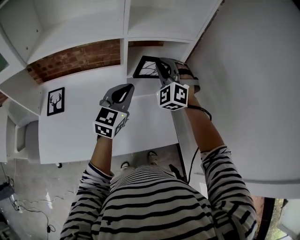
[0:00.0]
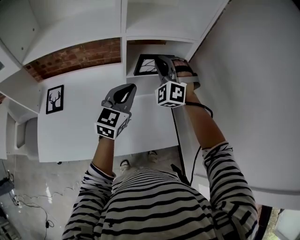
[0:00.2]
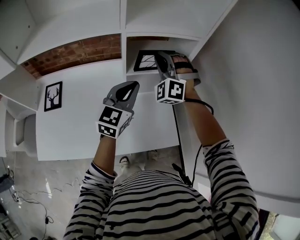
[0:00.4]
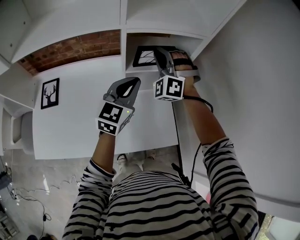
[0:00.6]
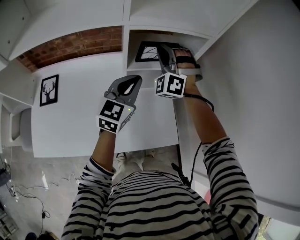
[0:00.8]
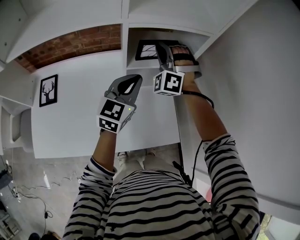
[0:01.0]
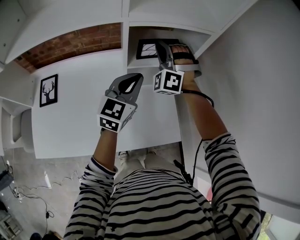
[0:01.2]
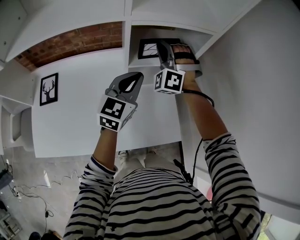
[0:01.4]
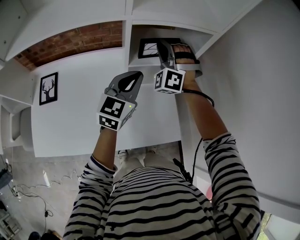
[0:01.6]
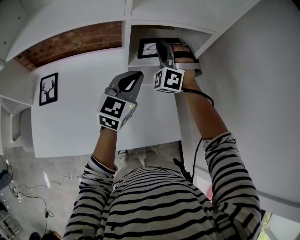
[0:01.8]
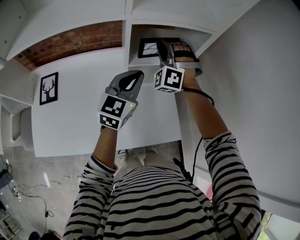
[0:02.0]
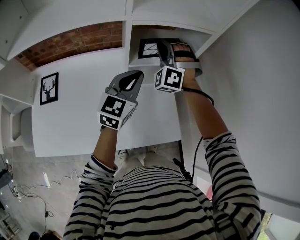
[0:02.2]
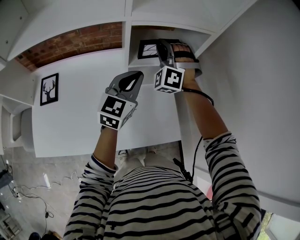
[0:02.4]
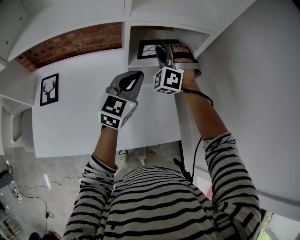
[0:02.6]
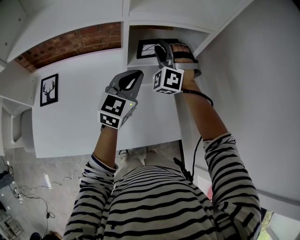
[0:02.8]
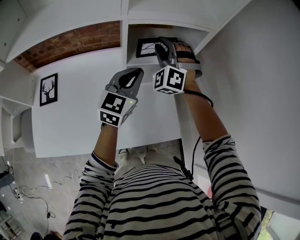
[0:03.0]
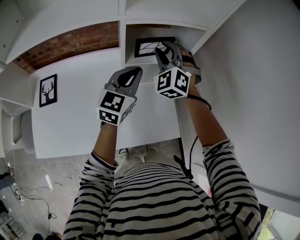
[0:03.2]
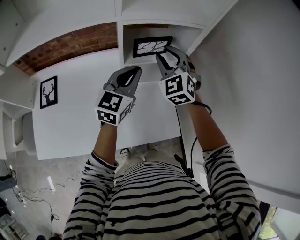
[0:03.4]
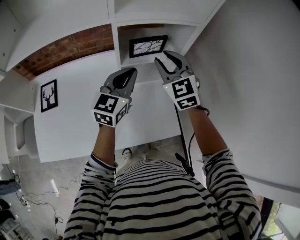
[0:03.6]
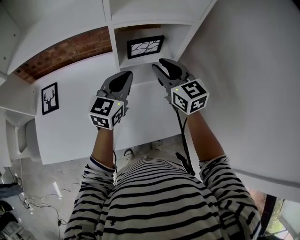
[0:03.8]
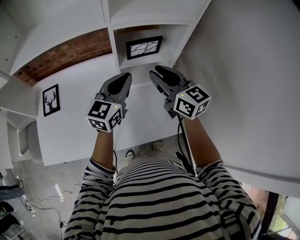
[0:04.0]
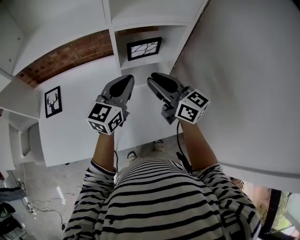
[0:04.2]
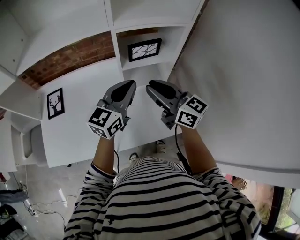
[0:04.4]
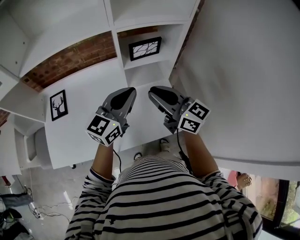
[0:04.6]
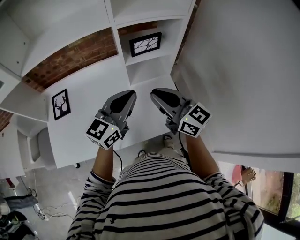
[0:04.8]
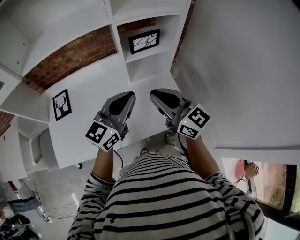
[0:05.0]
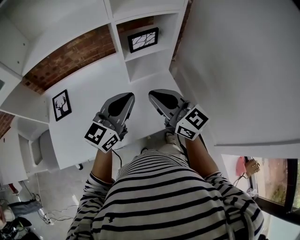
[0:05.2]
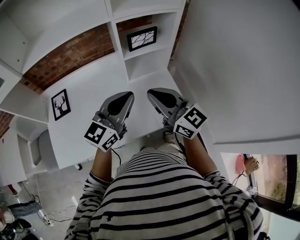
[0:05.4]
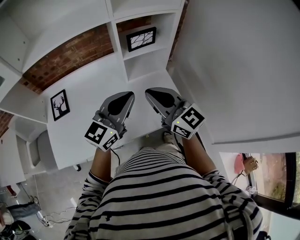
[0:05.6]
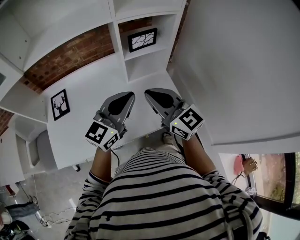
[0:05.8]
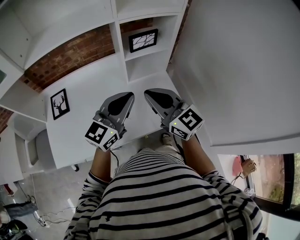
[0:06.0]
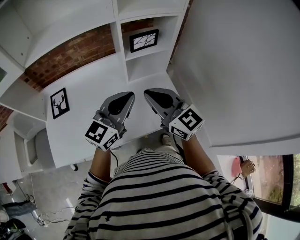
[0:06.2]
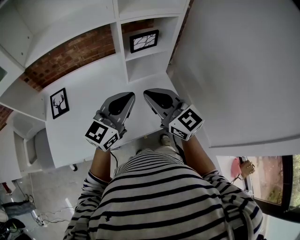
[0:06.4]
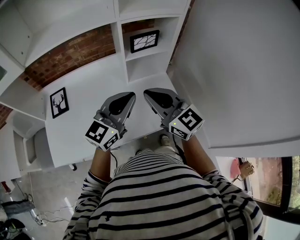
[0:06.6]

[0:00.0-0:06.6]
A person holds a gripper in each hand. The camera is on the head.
0.0 to 1.6 s: The two grippers go roughly 10 cm forward and downward.
1.6 to 3.2 s: The right gripper swivels about 20 degrees.
3.2 to 5.0 s: The right gripper travels backward by about 25 cm, rolls clockwise, seen from behind, by some 70 degrees, and closes its fingers; the left gripper is displaced backward by roughly 15 cm, and changes its angle by roughly 20 degrees.
5.0 to 6.6 s: The grippers make only small movements.

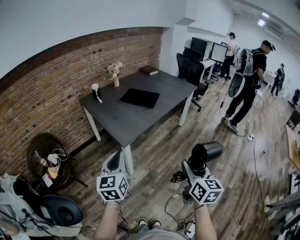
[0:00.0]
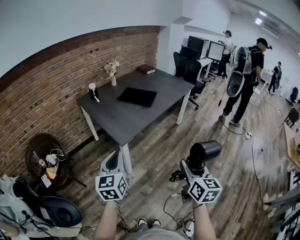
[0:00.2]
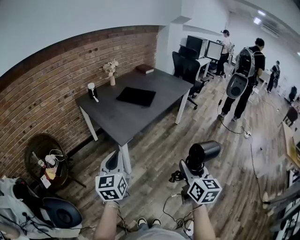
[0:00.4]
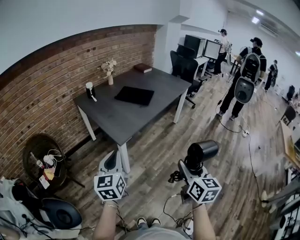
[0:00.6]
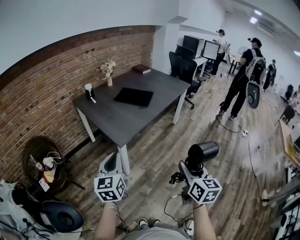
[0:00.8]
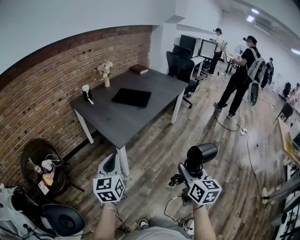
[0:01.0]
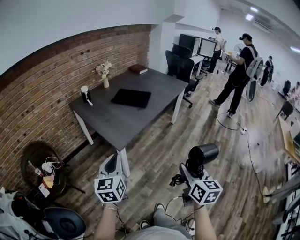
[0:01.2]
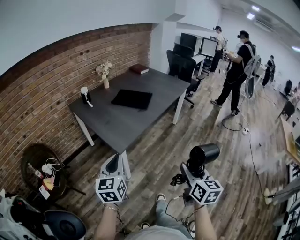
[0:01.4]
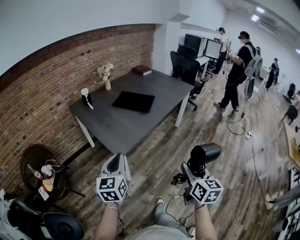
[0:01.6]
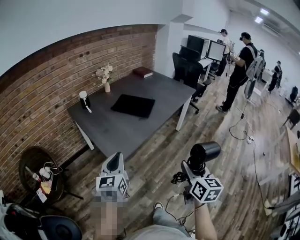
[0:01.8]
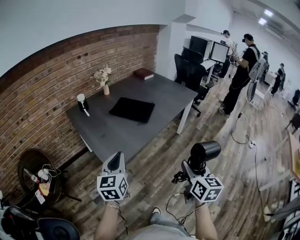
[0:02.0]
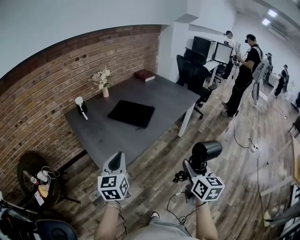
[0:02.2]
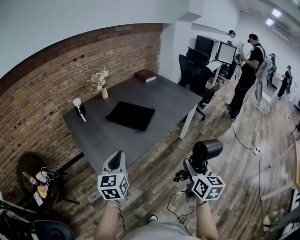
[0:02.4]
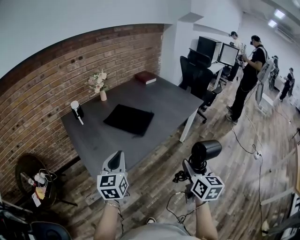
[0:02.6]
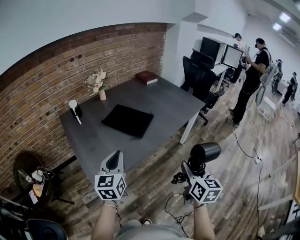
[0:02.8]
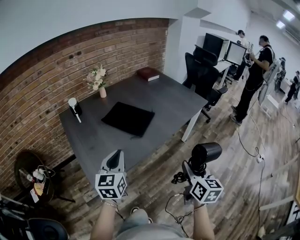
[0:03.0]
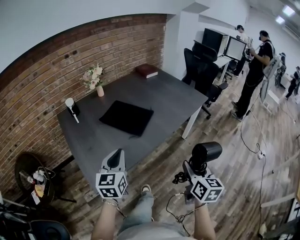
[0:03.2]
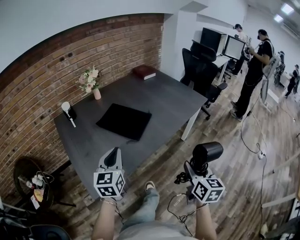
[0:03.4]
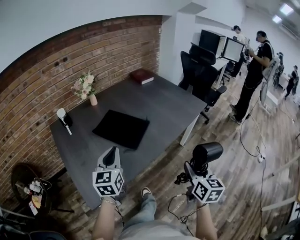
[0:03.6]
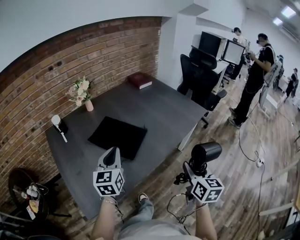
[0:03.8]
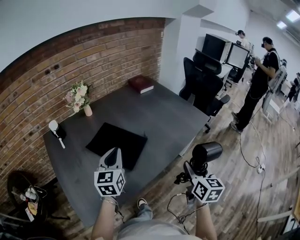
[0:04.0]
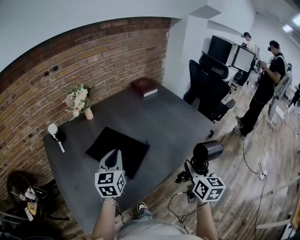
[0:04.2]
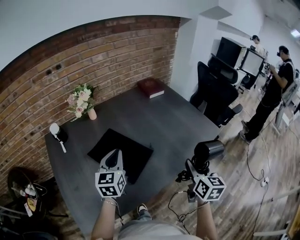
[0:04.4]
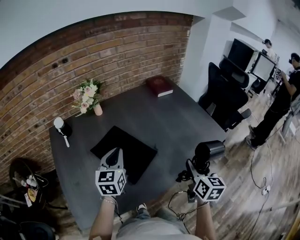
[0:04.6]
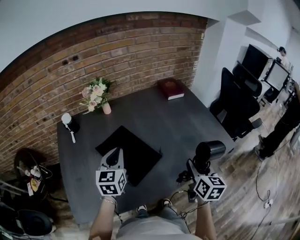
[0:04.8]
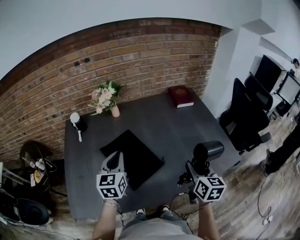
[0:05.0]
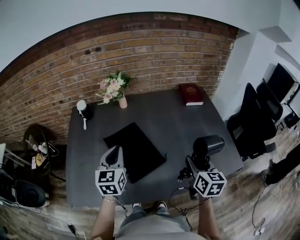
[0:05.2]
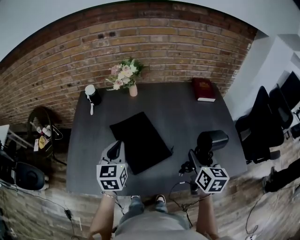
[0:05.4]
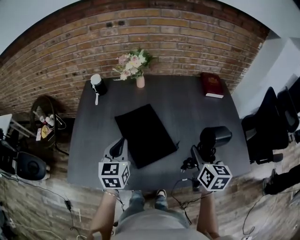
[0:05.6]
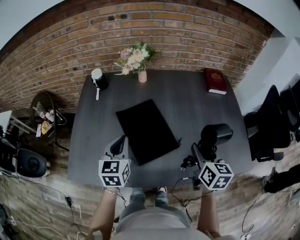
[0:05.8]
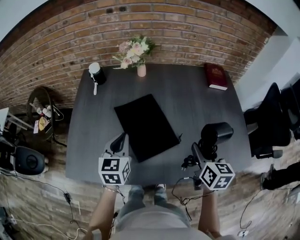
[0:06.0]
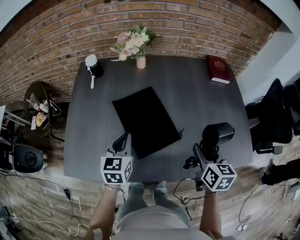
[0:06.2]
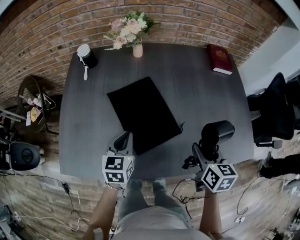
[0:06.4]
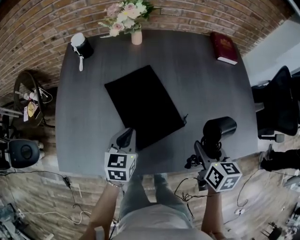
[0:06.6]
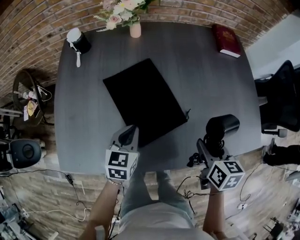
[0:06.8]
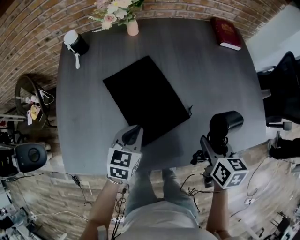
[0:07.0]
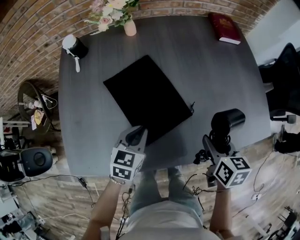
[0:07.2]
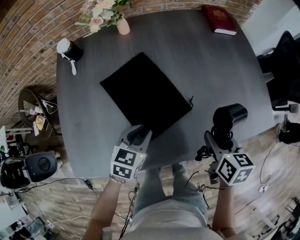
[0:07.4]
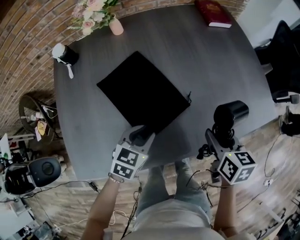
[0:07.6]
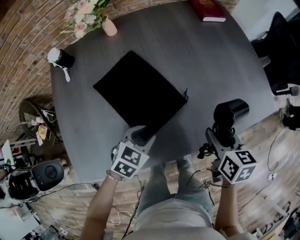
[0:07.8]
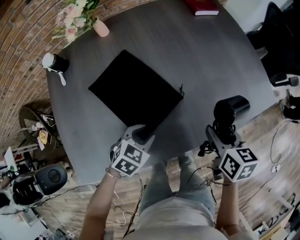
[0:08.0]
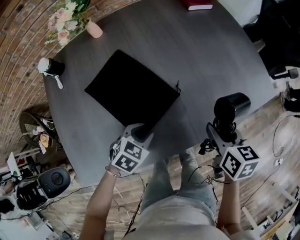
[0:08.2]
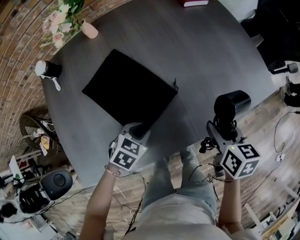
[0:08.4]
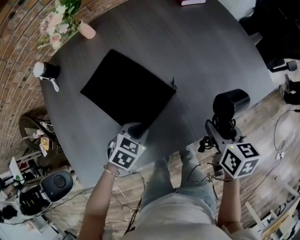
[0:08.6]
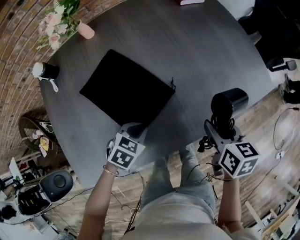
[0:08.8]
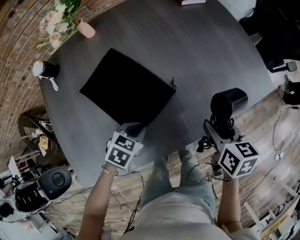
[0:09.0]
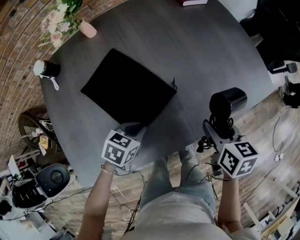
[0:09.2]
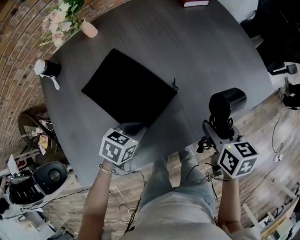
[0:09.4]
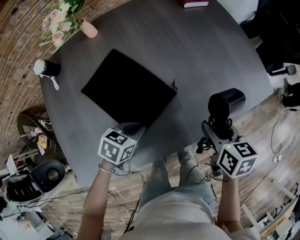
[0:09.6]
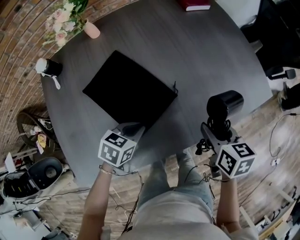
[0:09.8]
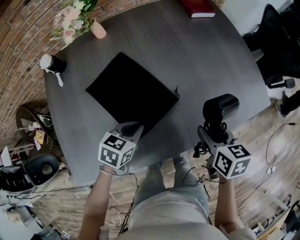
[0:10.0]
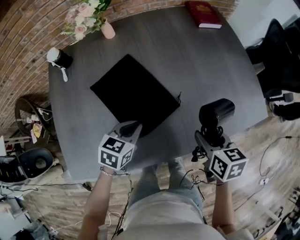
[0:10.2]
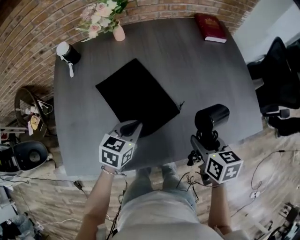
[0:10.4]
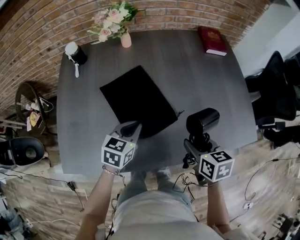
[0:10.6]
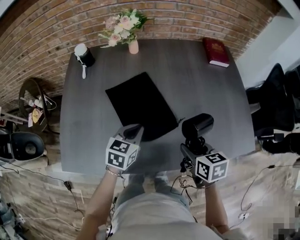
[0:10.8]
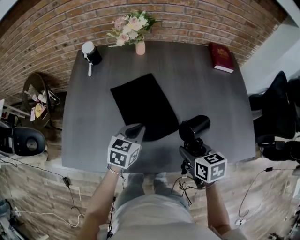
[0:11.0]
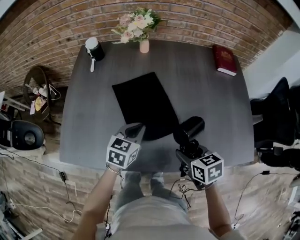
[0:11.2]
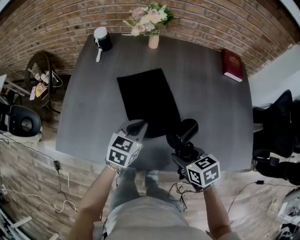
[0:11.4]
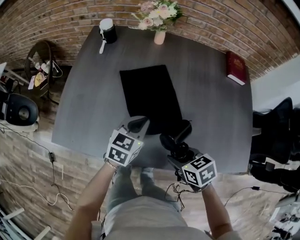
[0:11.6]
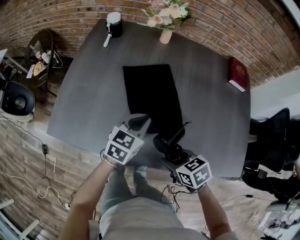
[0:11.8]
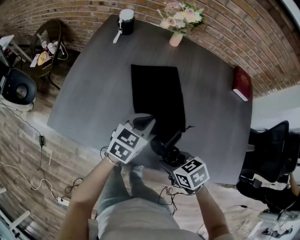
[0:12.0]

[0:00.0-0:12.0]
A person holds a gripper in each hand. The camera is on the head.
0.0 to 1.6 s: The grippers both shift forward by roughly 10 cm.
1.6 to 3.0 s: Both grippers travel together forward and to the right, roughly 35 cm.
3.0 to 4.4 s: The two grippers go some 35 cm forward.
4.4 to 6.0 s: The left gripper ends up about 10 cm from where it was, and changes its angle by some 30 degrees. Meanwhile the right gripper ends up roughly 20 cm from where it was, and rotates about 40 degrees.
6.0 to 7.6 s: The right gripper heads downward and backward, covering approximately 10 cm; the left gripper goes approximately 20 cm downward and to the right, rotates approximately 50 degrees, and opens up.
7.6 to 9.0 s: The left gripper moves approximately 5 cm, rotates approximately 20 degrees, and closes its fingers.
9.0 to 10.4 s: The left gripper travels upward by approximately 10 cm, and changes its angle by approximately 30 degrees; the right gripper goes roughly 5 cm to the left.
10.4 to 12.0 s: The right gripper shifts by roughly 15 cm, and changes its angle by about 60 degrees, while the left gripper rotates some 20 degrees.

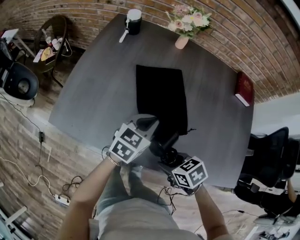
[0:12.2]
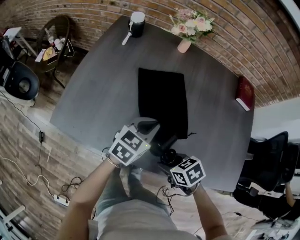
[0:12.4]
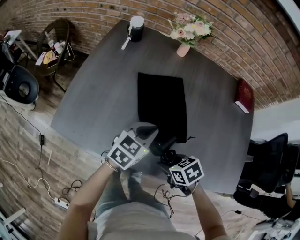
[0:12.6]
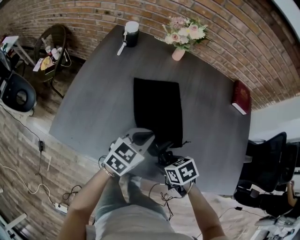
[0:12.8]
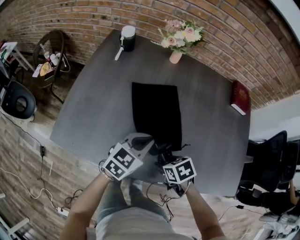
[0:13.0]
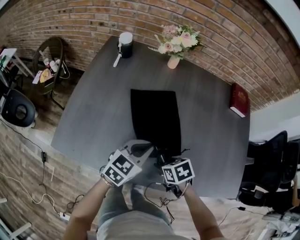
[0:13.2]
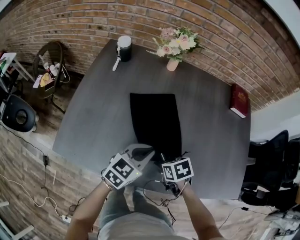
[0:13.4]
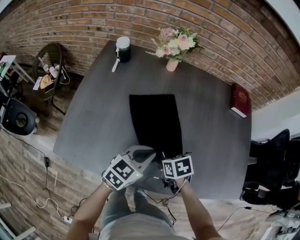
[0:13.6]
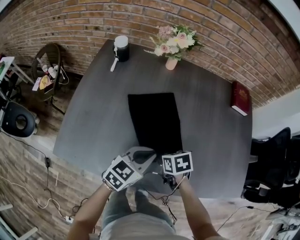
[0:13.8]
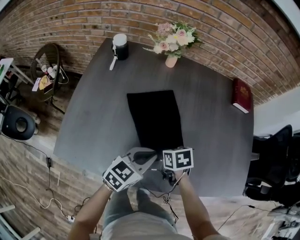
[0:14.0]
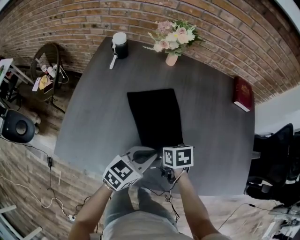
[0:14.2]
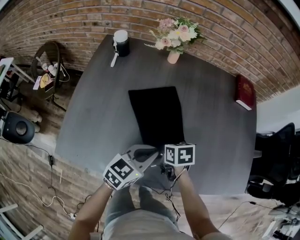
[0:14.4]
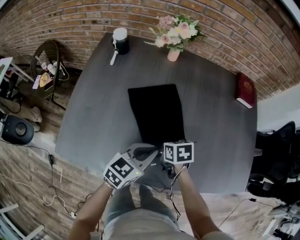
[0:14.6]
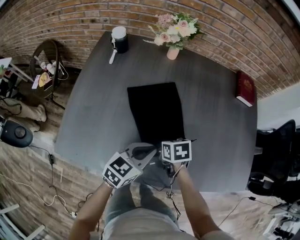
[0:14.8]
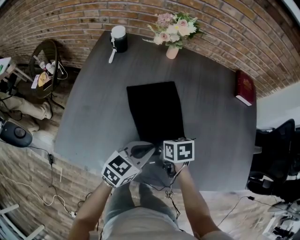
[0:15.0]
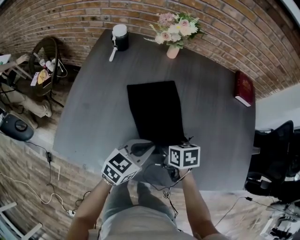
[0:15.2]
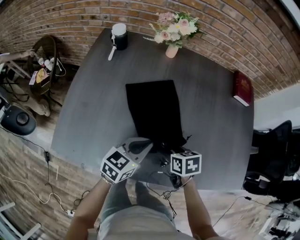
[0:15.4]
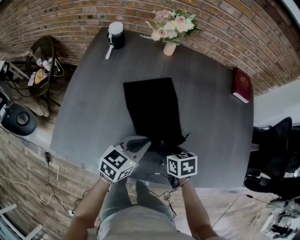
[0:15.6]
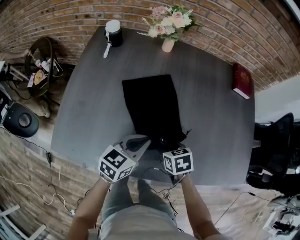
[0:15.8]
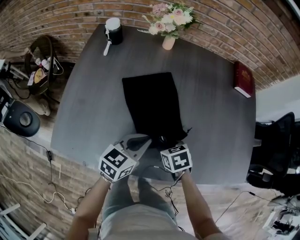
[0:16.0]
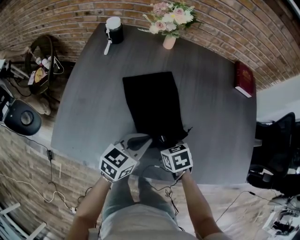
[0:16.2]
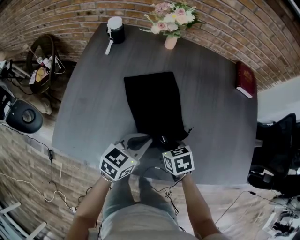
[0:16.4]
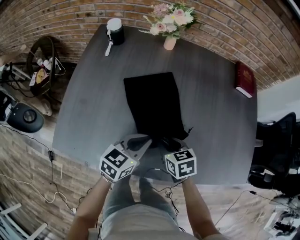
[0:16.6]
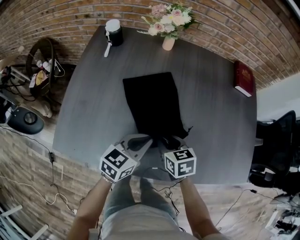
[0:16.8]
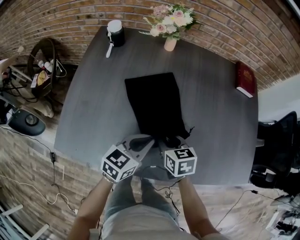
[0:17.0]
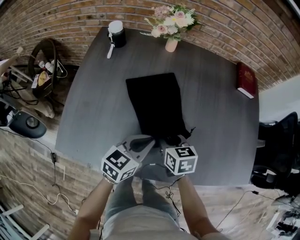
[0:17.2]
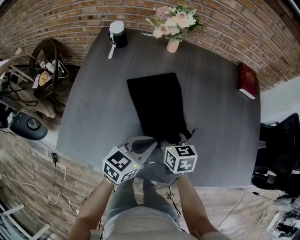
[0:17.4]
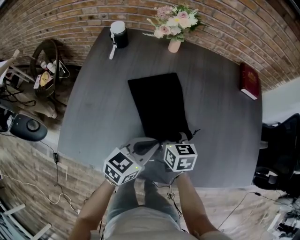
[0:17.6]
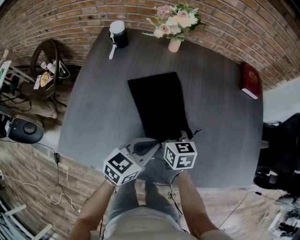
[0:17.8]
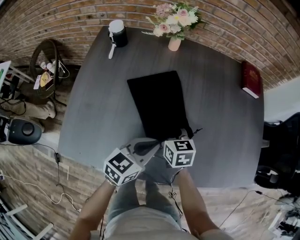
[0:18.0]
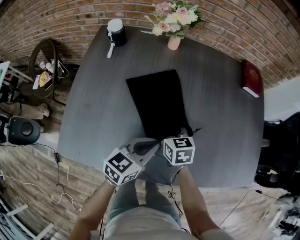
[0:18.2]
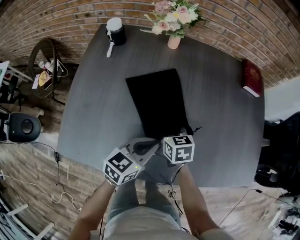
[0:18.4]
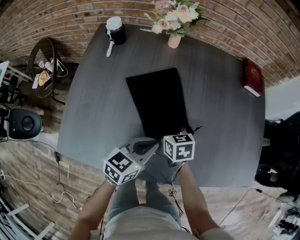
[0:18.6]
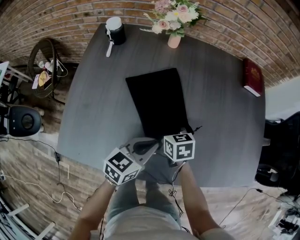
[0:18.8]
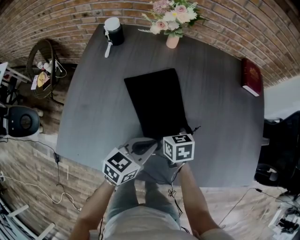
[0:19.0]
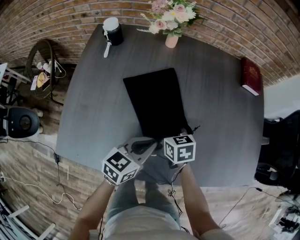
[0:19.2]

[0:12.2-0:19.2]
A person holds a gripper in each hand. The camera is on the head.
12.2 to 13.6 s: The right gripper goes approximately 10 cm forward, and turns by about 20 degrees.
13.6 to 15.0 s: The right gripper is displaced forward by about 5 cm.
15.0 to 16.4 s: The right gripper shifts some 5 cm backward, and closes its fingers.
16.4 to 17.8 s: The right gripper moves forward, approximately 10 cm, and swivels approximately 30 degrees.
17.8 to 19.2 s: There are only small adjustments of the grippers.
